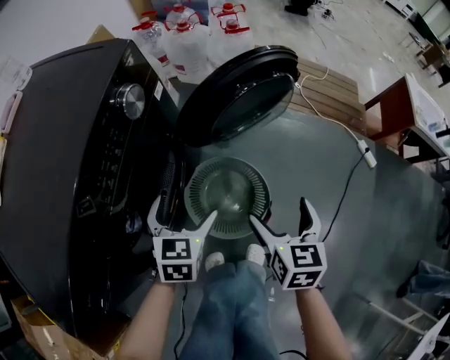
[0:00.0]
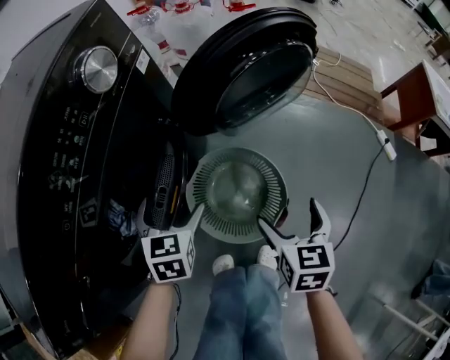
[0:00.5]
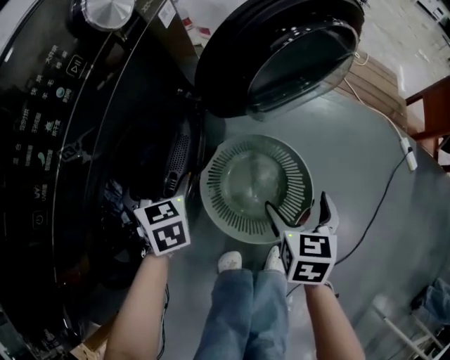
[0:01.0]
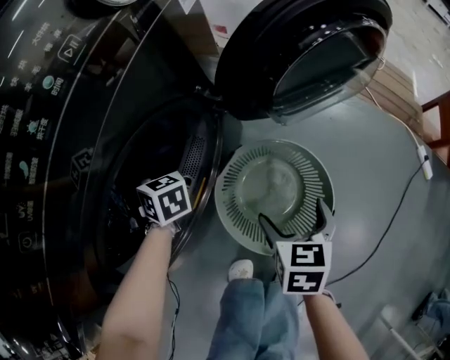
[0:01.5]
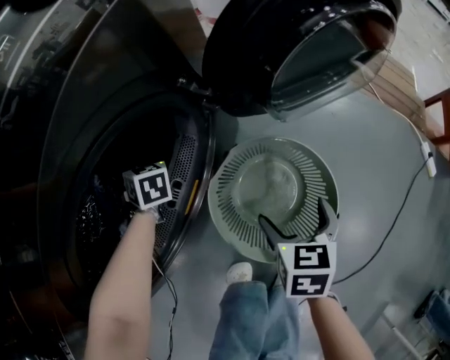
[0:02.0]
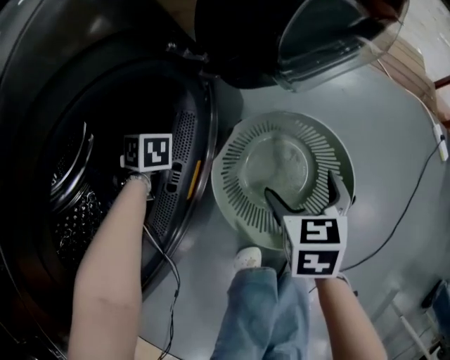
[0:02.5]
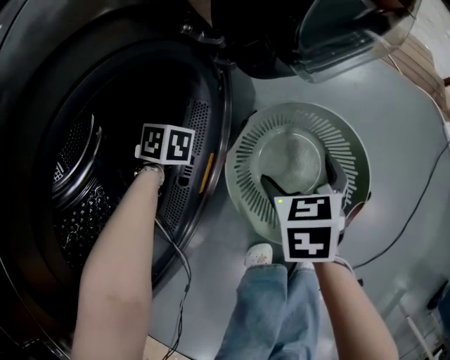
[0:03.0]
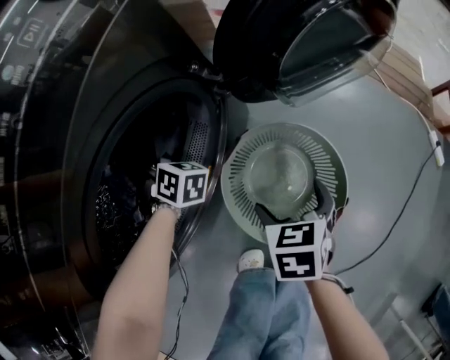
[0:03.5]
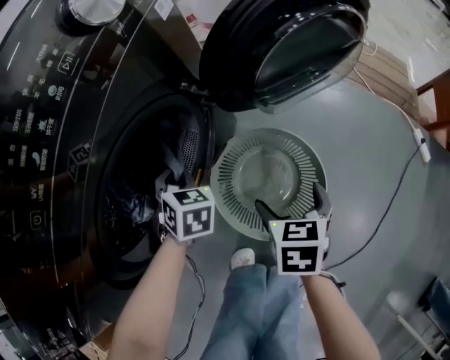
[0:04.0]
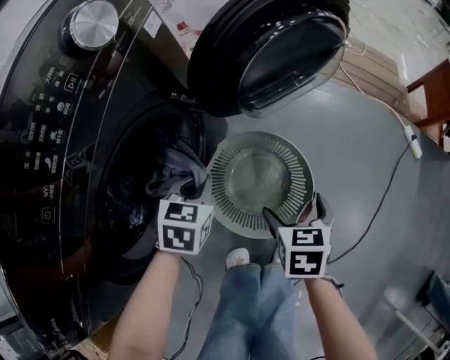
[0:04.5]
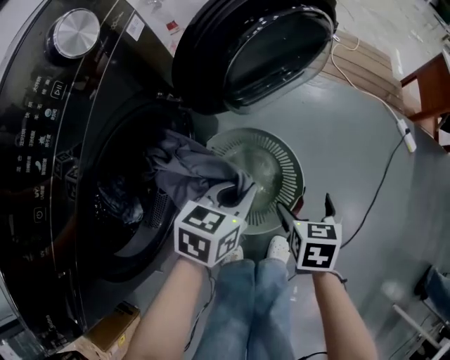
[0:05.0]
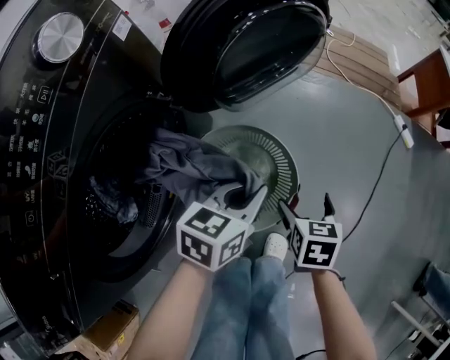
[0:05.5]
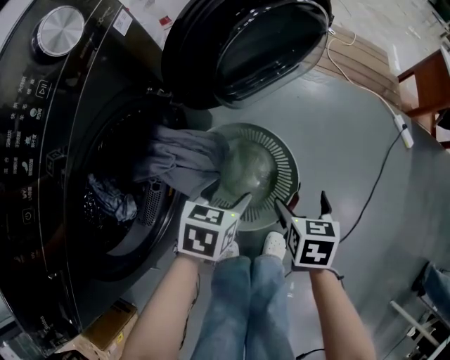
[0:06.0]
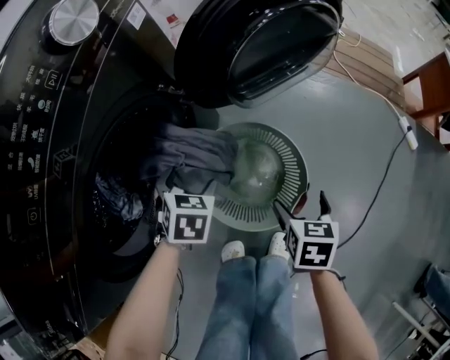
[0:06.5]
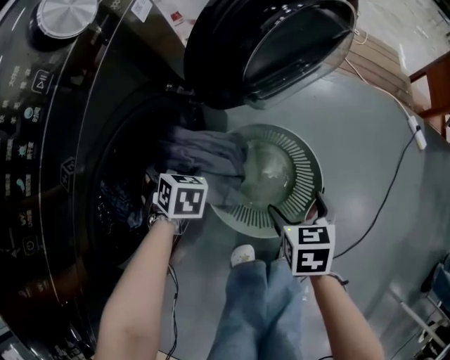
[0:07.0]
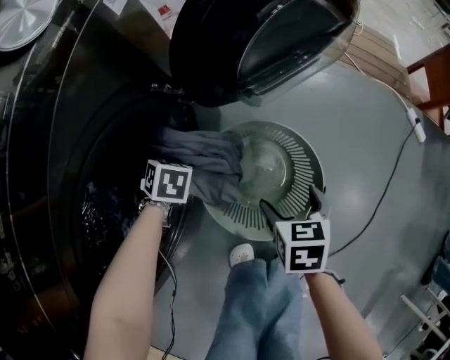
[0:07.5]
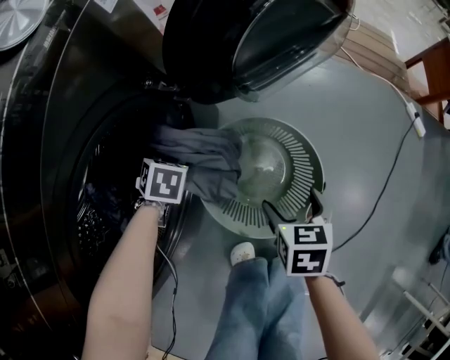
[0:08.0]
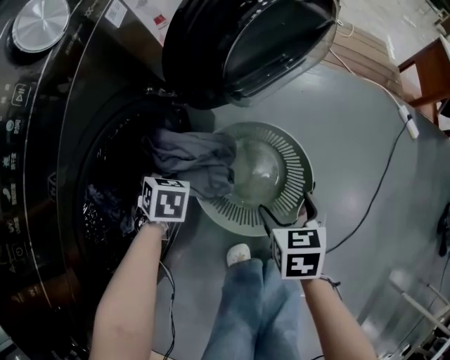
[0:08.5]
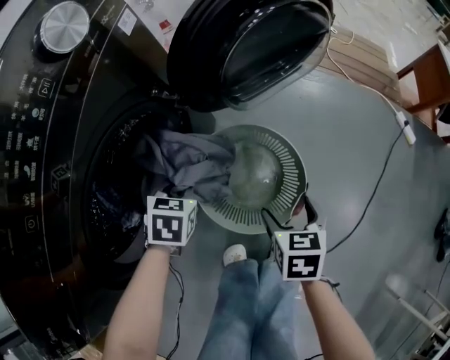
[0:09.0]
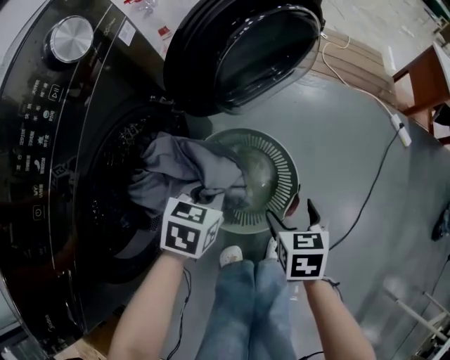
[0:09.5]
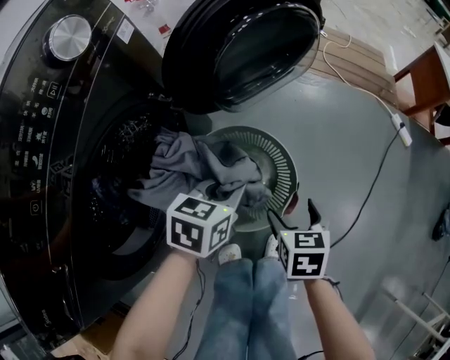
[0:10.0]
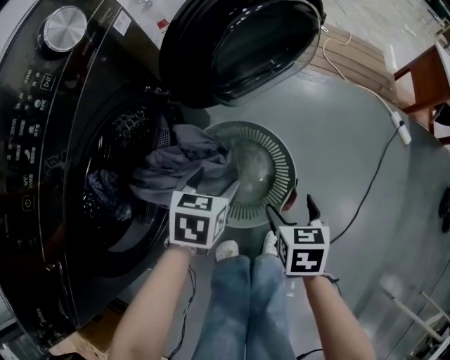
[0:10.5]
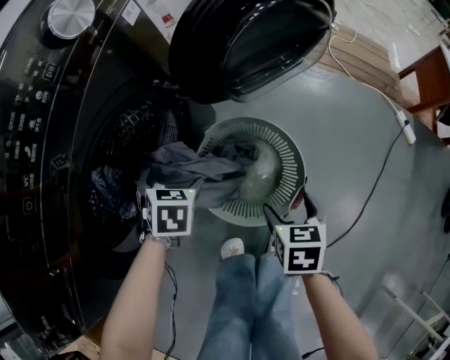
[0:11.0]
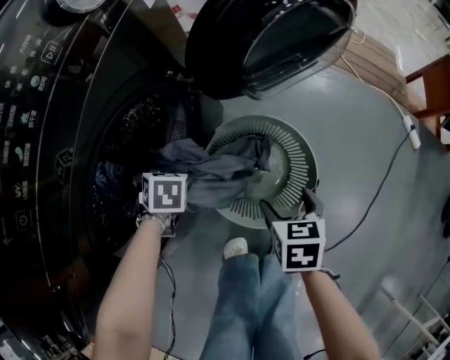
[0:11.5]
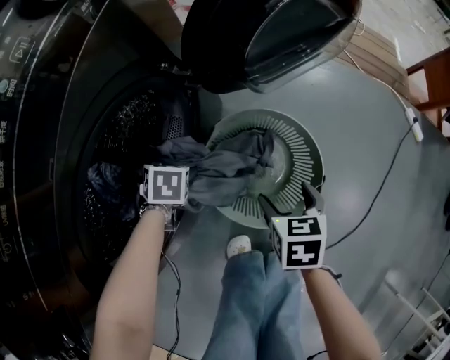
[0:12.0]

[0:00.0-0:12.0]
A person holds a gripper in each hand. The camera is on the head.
0:00.0 to 0:02.0: The left gripper moves some 40 cm, and turns by approximately 40 degrees. Meanwhile the right gripper travels downward by approximately 25 cm.
0:02.0 to 0:04.0: The left gripper is displaced backward, to the right and upward by roughly 15 cm, and closes.
0:04.0 to 0:06.0: The left gripper shifts by about 20 cm, changes its angle by roughly 40 degrees, and opens its fingers. The right gripper shifts by about 15 cm.
0:06.0 to 0:08.0: The right gripper changes place by about 10 cm, while the left gripper moves about 25 cm, and turns by some 30 degrees.
0:08.0 to 0:10.0: The left gripper shifts by roughly 30 cm, swivels about 40 degrees, and closes up; the right gripper shifts by approximately 10 cm.
0:10.0 to 0:12.0: The right gripper moves roughly 10 cm, while the left gripper shifts by about 30 cm, changes its angle by some 40 degrees, and opens up.

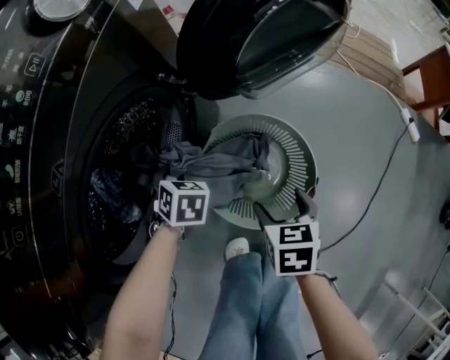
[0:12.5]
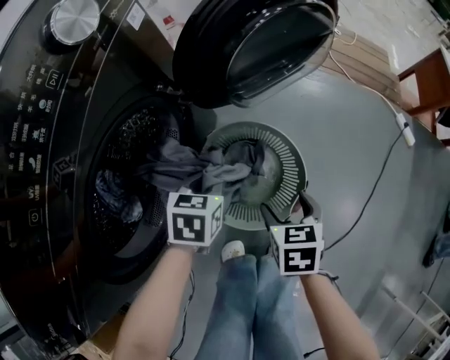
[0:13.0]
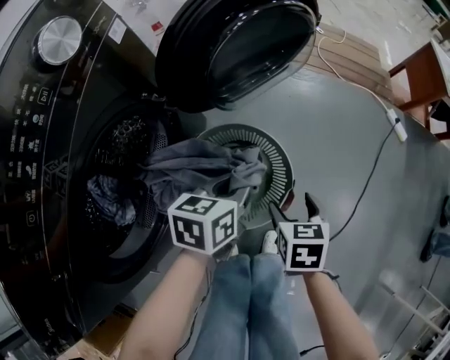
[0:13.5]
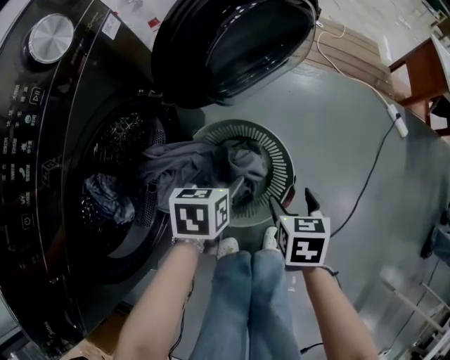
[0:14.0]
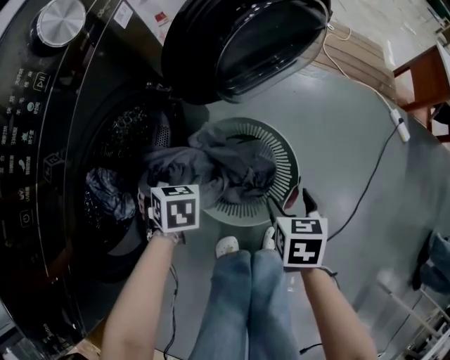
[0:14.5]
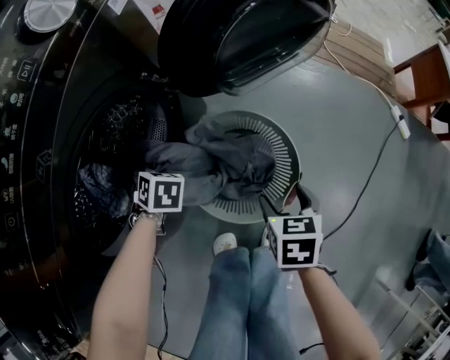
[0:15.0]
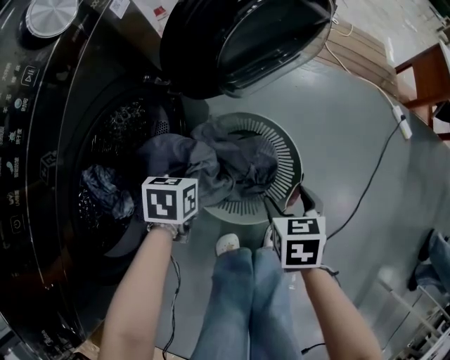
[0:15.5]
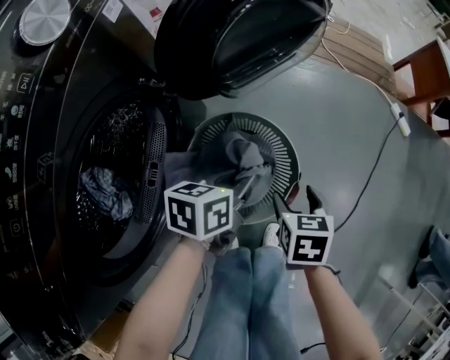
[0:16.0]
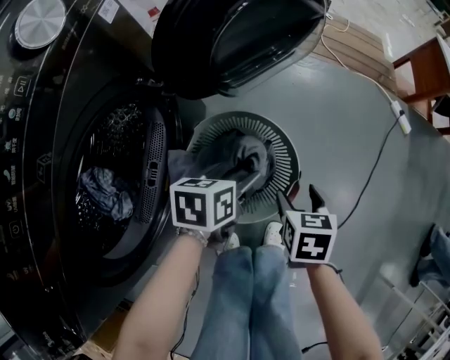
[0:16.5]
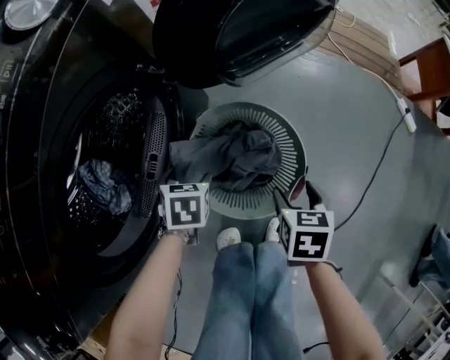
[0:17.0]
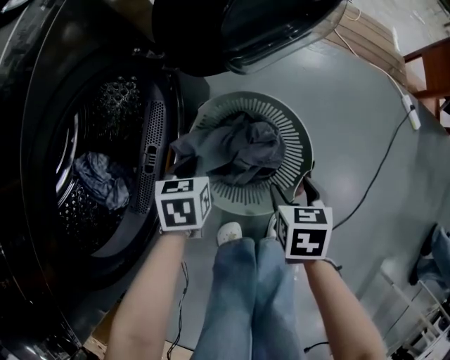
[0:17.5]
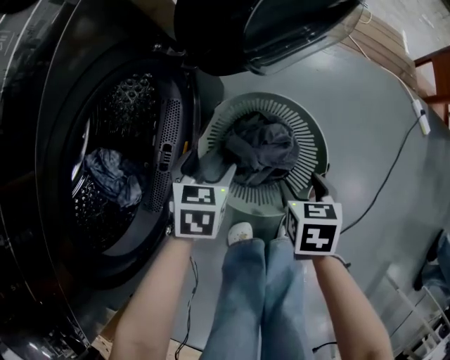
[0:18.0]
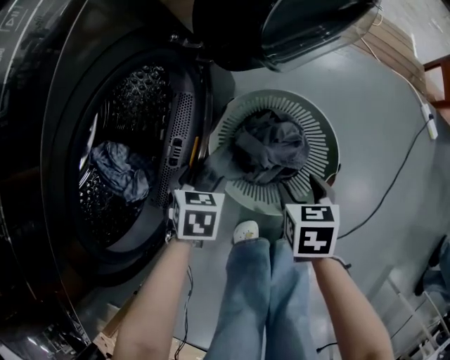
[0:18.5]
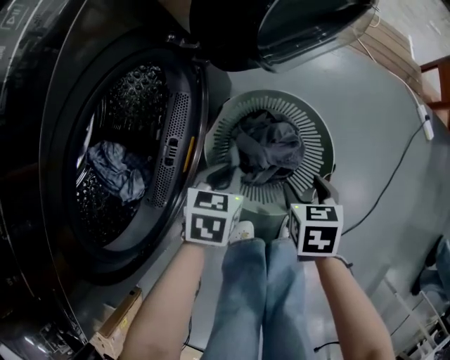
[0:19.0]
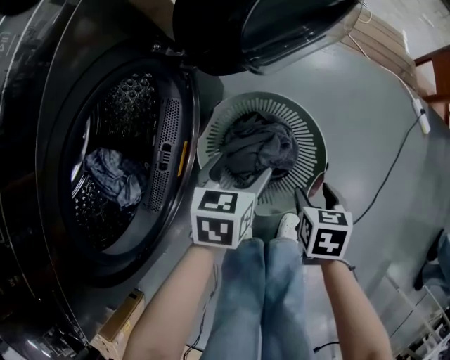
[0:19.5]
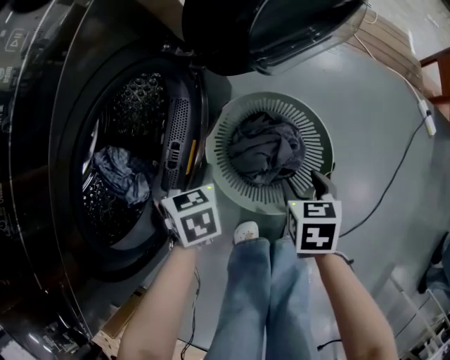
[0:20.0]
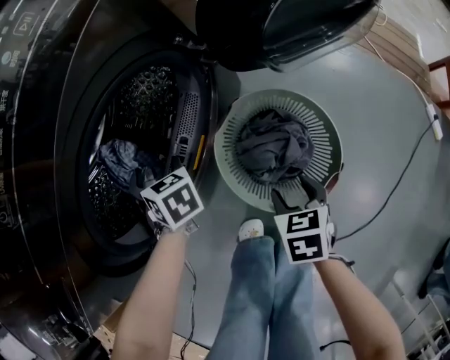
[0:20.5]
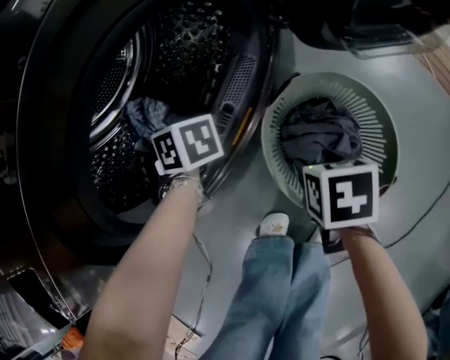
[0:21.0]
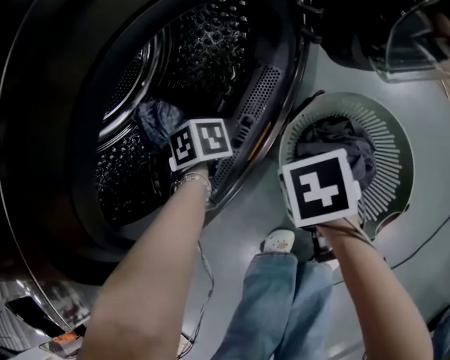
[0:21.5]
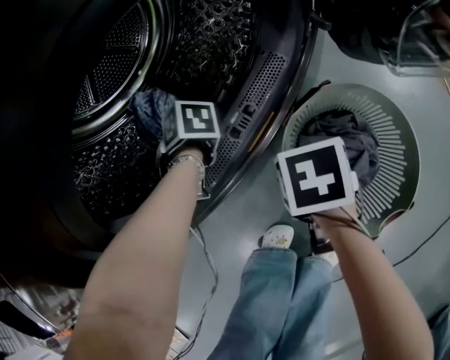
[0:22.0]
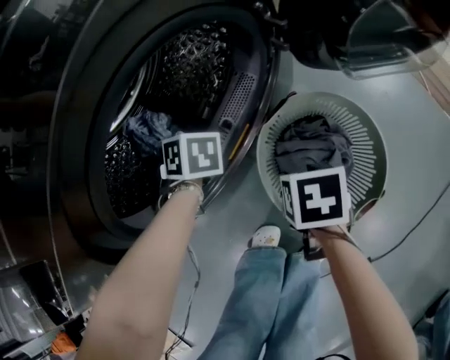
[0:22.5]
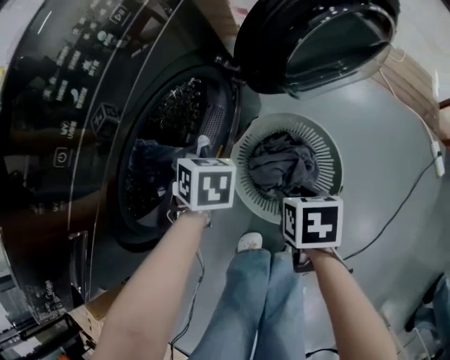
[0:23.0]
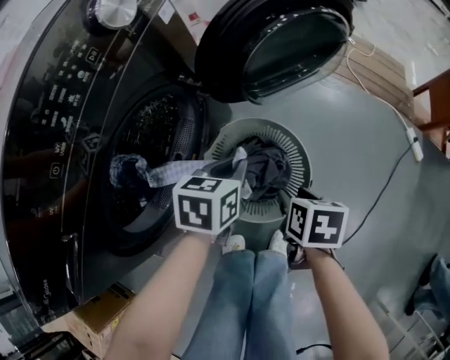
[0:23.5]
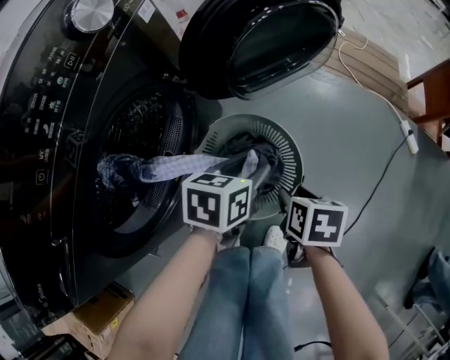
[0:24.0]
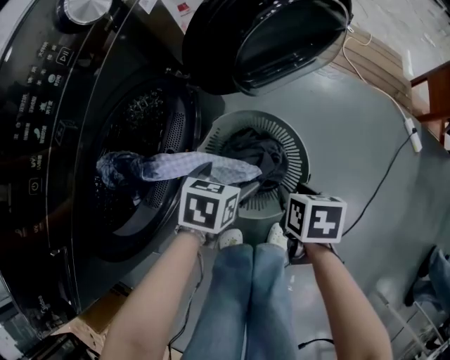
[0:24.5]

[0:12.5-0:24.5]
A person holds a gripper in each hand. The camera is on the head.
0:12.5 to 0:14.5: The left gripper travels upward and back again, about 10 cm each way, and opens up. The right gripper shifts by about 10 cm.
0:14.5 to 0:16.5: The left gripper travels downward and back again, some 5 cm each way, rotates about 50 degrees, and closes and opens again.
0:16.5 to 0:18.5: The right gripper moves some 10 cm; the left gripper changes place by about 20 cm, swivels roughly 40 degrees, and closes, then reopens.
0:18.5 to 0:20.5: The left gripper moves some 15 cm, turns by roughly 40 degrees, and closes, then opens again.
0:20.5 to 0:22.5: The left gripper closes.
0:22.5 to 0:24.5: The right gripper moves about 20 cm, and rotates roughly 30 degrees; the left gripper shifts by about 30 cm, changes its angle by about 60 degrees, and opens its fingers.

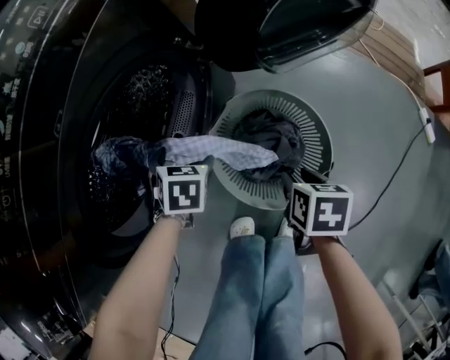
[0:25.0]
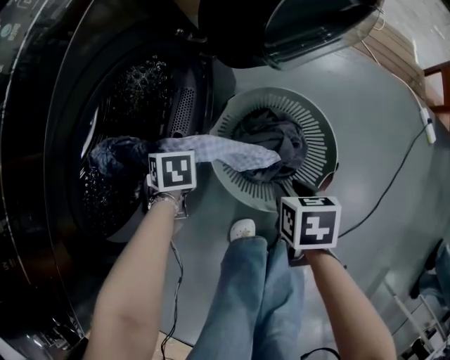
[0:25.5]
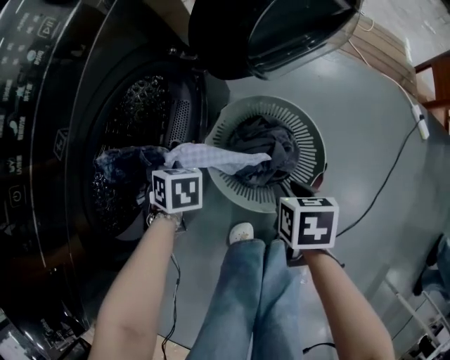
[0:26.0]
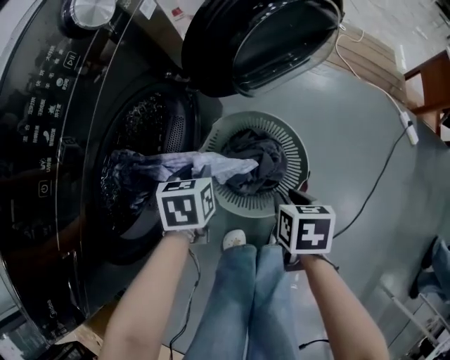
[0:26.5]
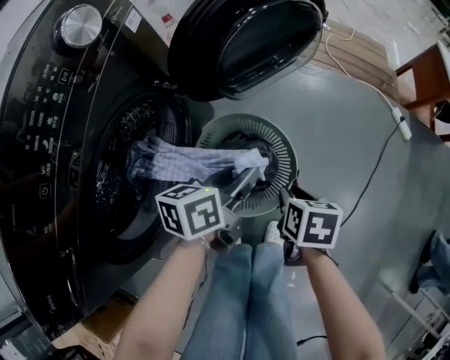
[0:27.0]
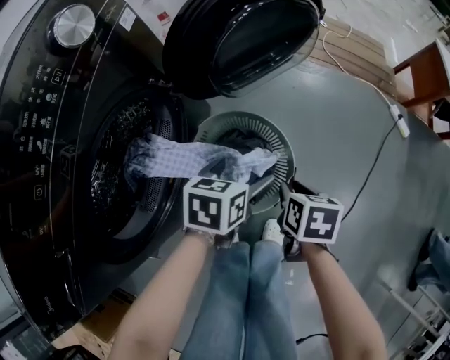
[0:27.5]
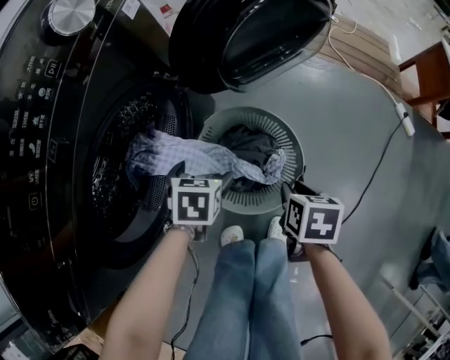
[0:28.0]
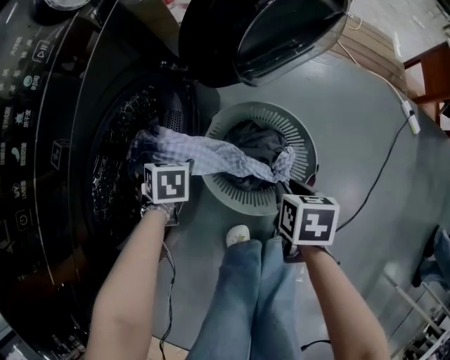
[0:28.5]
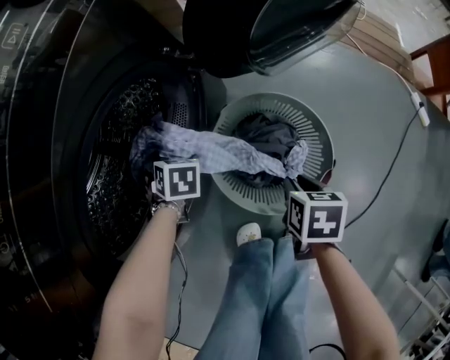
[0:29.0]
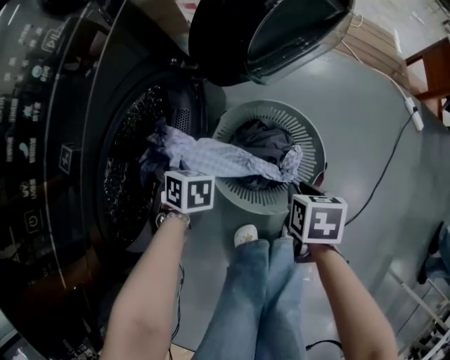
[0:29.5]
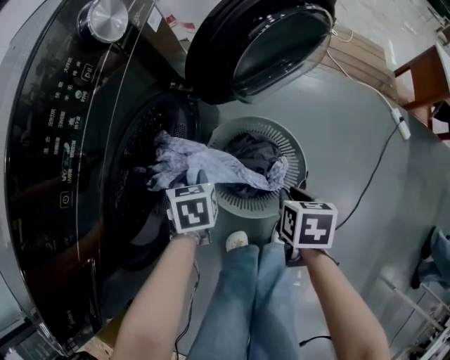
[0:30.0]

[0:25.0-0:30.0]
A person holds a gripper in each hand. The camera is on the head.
0:25.0 to 0:27.5: The left gripper moves up and down over about 20 cm, changing direction 2 times, rotates some 40 degrees, and closes, then reopens; the right gripper shifts by roughly 10 cm.
0:27.5 to 0:30.0: The left gripper reaches approximately 15 cm downward, then returns, rotates about 30 degrees, and closes up. The right gripper reaches some 5 cm downward, then returns.
